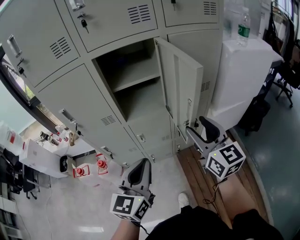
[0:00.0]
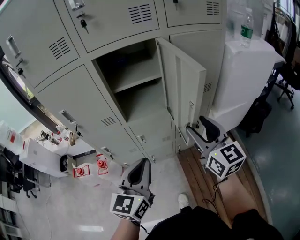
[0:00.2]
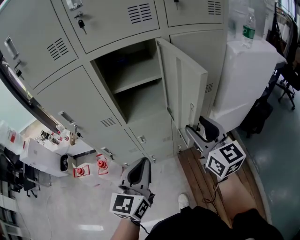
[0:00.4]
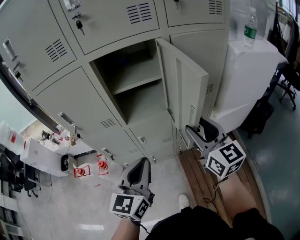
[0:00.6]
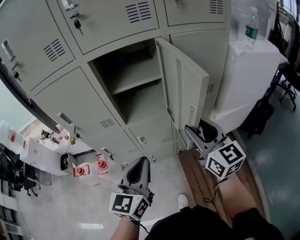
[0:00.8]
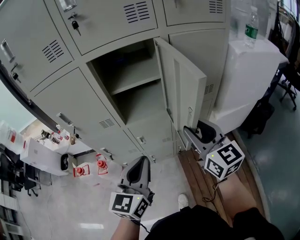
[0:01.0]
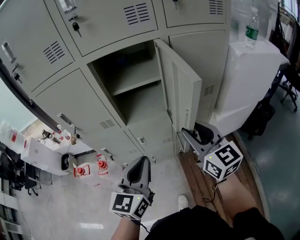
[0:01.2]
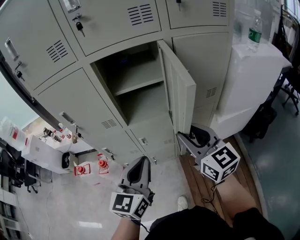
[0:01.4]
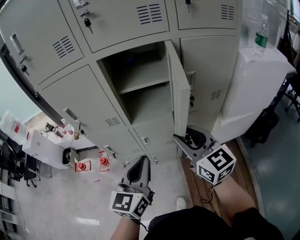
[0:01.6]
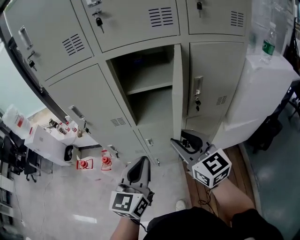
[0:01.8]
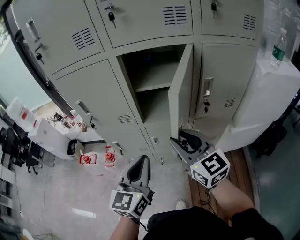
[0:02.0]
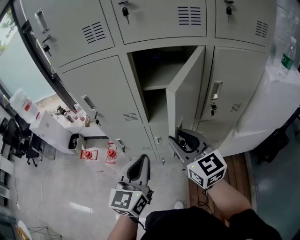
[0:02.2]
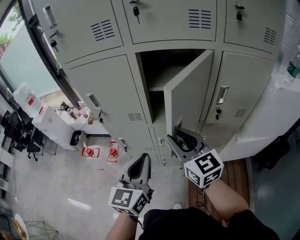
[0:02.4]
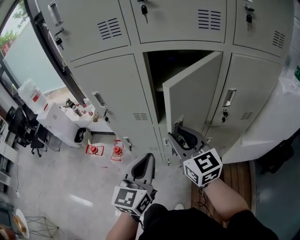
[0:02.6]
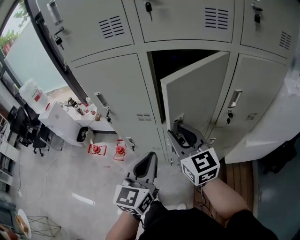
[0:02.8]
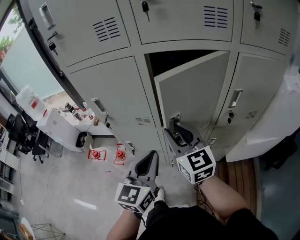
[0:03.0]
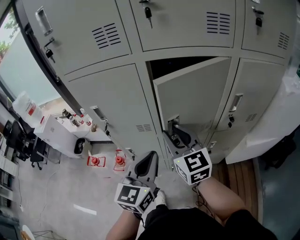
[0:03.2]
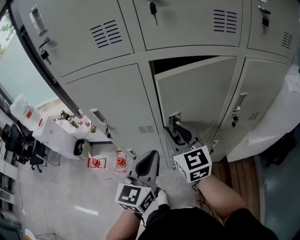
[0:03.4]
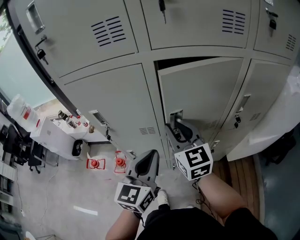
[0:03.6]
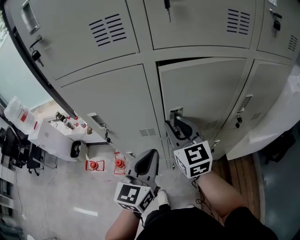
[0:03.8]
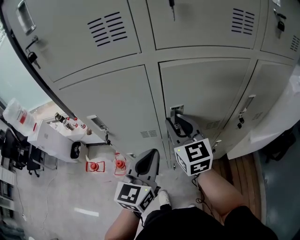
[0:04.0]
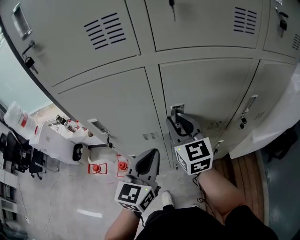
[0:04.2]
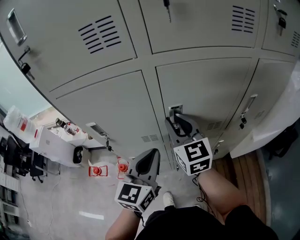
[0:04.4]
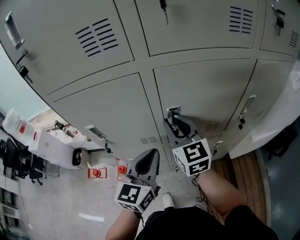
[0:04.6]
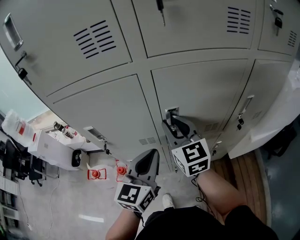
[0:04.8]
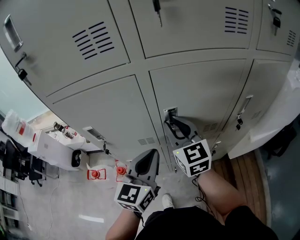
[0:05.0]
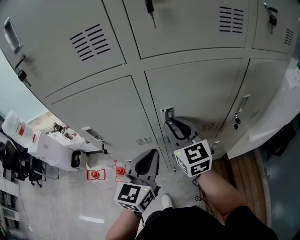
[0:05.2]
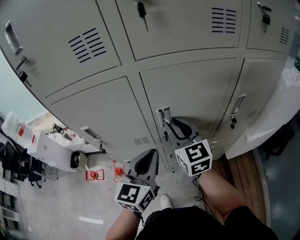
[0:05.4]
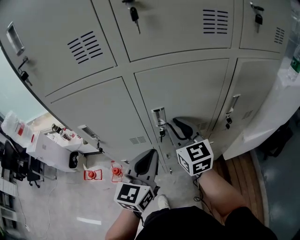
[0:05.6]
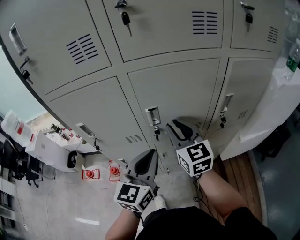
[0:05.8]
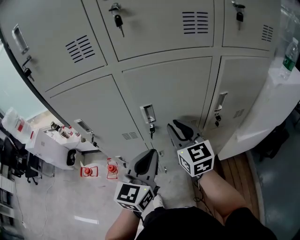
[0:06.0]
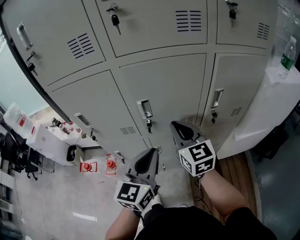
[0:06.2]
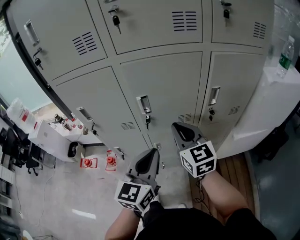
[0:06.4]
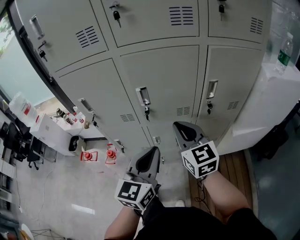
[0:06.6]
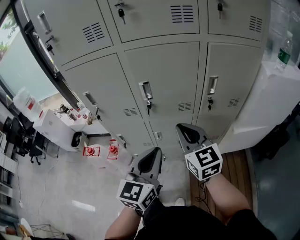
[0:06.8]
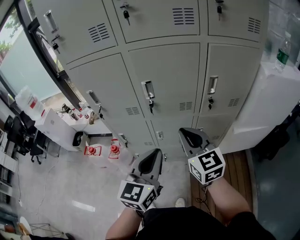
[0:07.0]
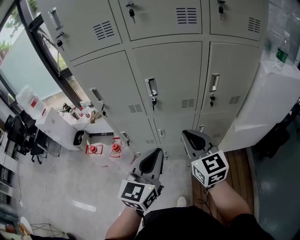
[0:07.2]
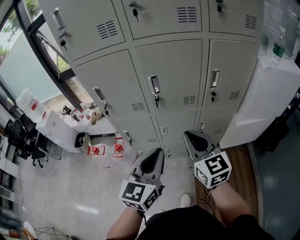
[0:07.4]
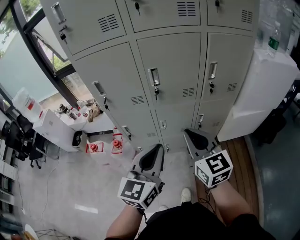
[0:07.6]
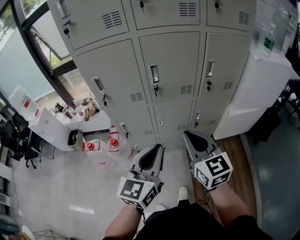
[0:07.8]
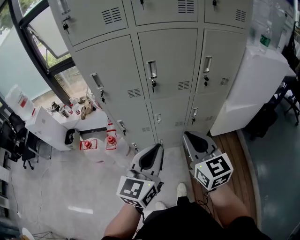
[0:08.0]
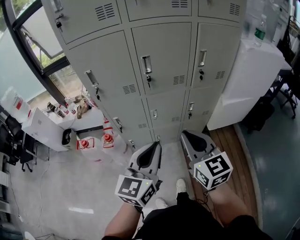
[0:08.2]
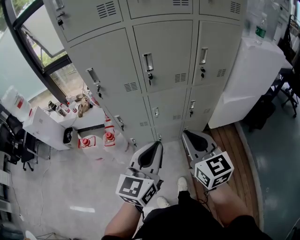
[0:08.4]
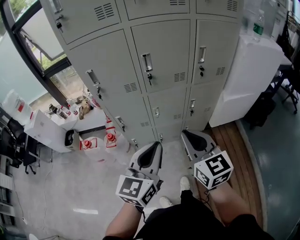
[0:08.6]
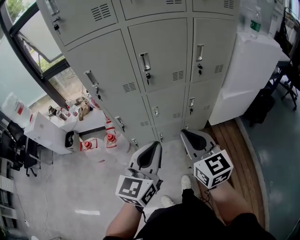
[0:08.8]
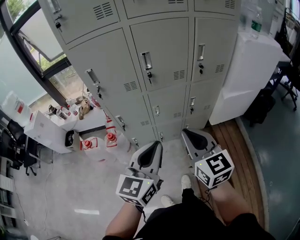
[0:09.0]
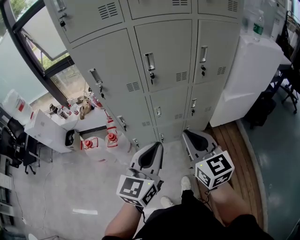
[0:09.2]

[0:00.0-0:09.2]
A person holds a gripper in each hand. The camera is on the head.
0:00.0 to 0:01.6: The right gripper is displaced to the left by about 5 cm.
0:01.6 to 0:03.0: The left gripper moves forward and to the left, roughly 10 cm. The right gripper travels to the left and forward by approximately 20 cm.
0:03.0 to 0:04.6: Both grippers move forward, approximately 10 cm.
0:04.6 to 0:06.2: Both grippers move to the right and backward, about 15 cm.
0:06.2 to 0:07.6: Both grippers move backward, roughly 20 cm.
0:07.6 to 0:09.2: The two grippers go approximately 10 cm backward.

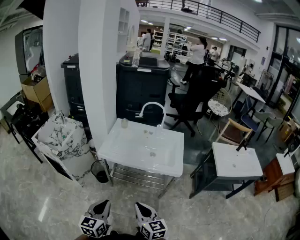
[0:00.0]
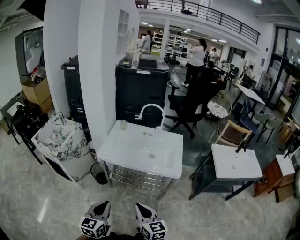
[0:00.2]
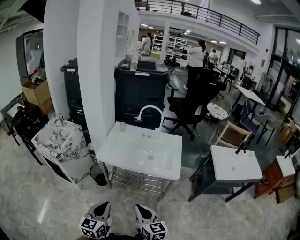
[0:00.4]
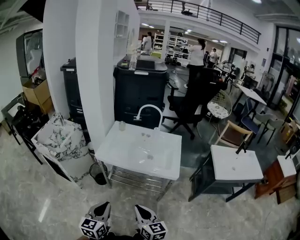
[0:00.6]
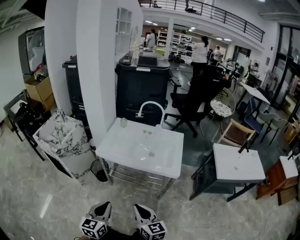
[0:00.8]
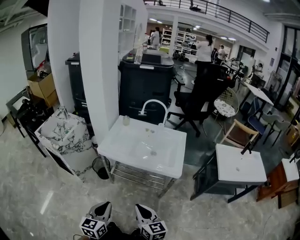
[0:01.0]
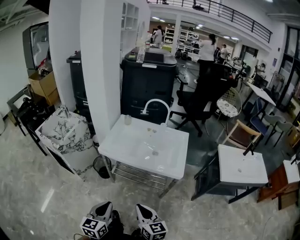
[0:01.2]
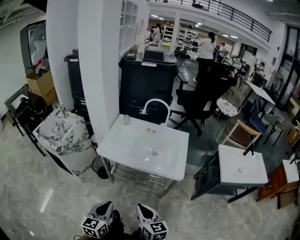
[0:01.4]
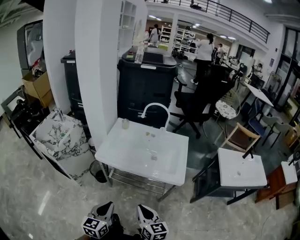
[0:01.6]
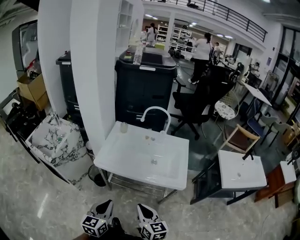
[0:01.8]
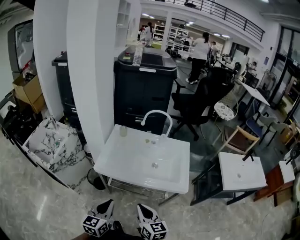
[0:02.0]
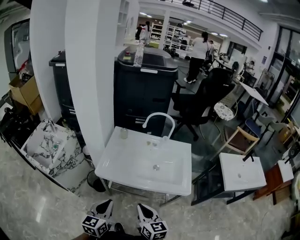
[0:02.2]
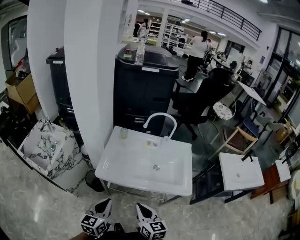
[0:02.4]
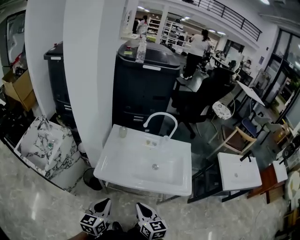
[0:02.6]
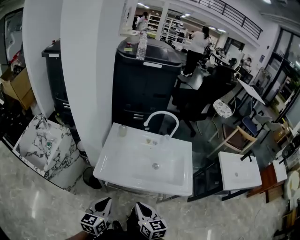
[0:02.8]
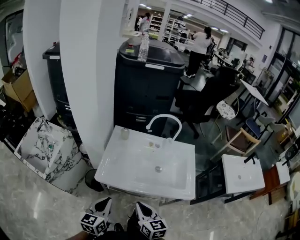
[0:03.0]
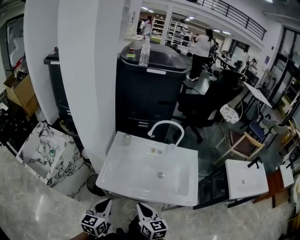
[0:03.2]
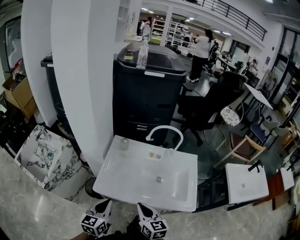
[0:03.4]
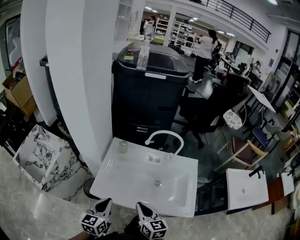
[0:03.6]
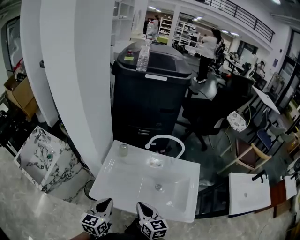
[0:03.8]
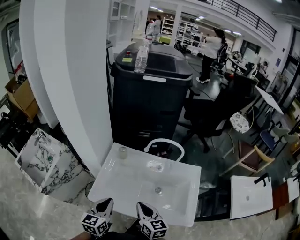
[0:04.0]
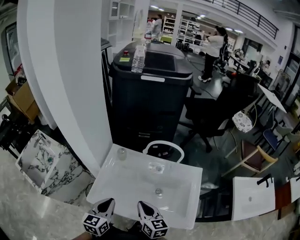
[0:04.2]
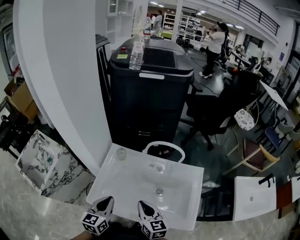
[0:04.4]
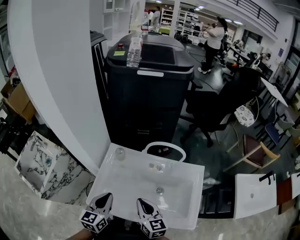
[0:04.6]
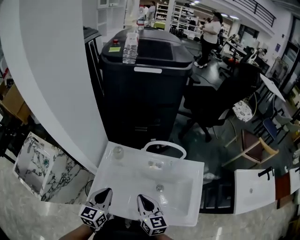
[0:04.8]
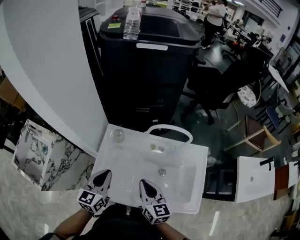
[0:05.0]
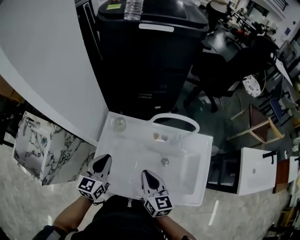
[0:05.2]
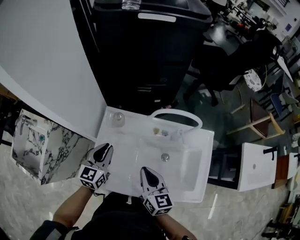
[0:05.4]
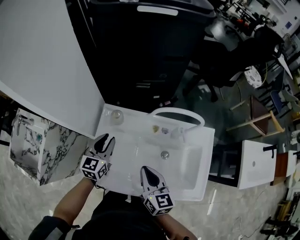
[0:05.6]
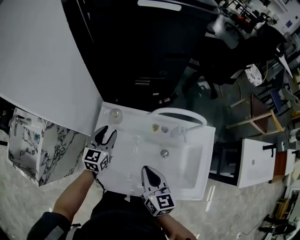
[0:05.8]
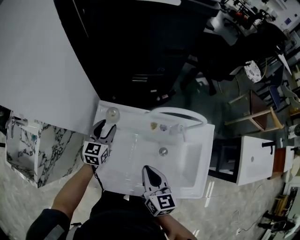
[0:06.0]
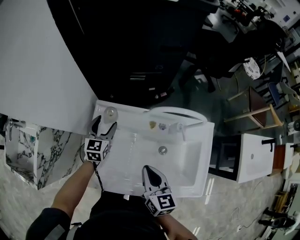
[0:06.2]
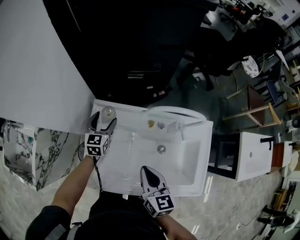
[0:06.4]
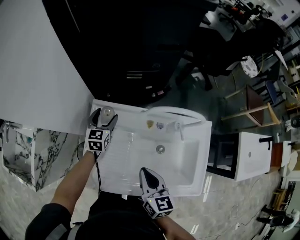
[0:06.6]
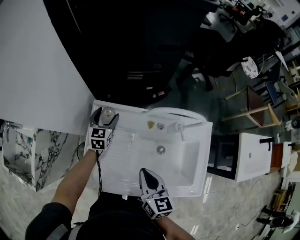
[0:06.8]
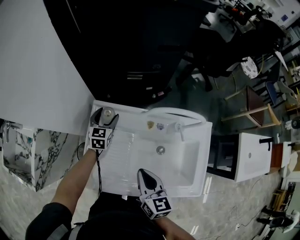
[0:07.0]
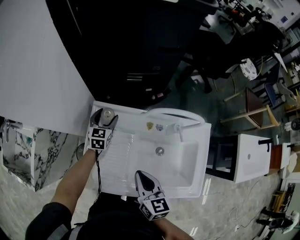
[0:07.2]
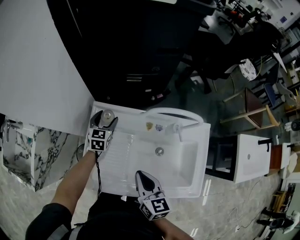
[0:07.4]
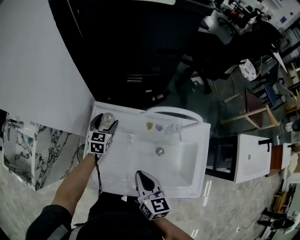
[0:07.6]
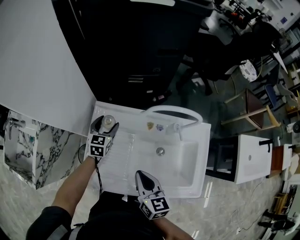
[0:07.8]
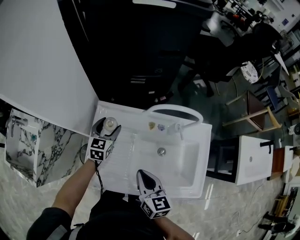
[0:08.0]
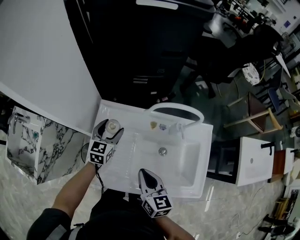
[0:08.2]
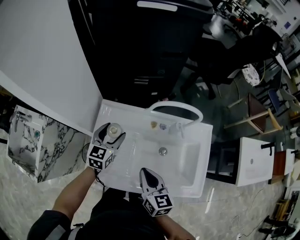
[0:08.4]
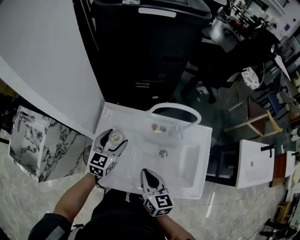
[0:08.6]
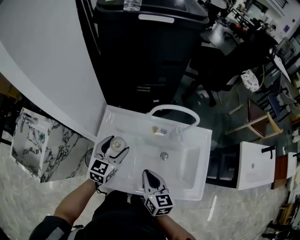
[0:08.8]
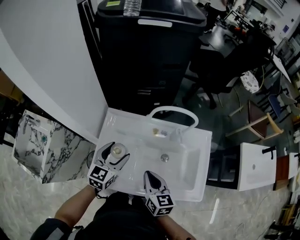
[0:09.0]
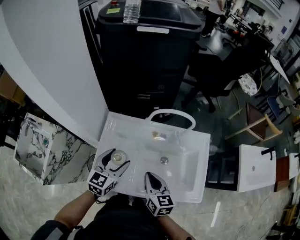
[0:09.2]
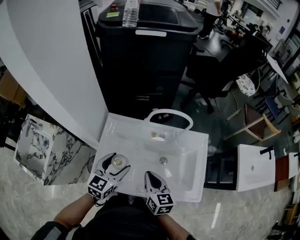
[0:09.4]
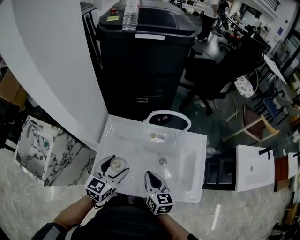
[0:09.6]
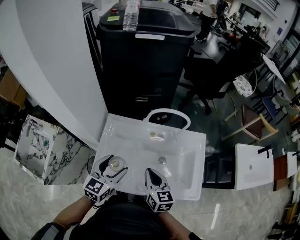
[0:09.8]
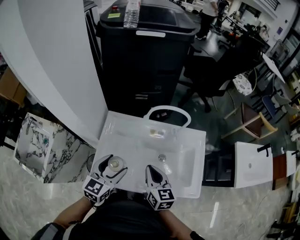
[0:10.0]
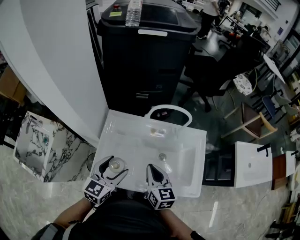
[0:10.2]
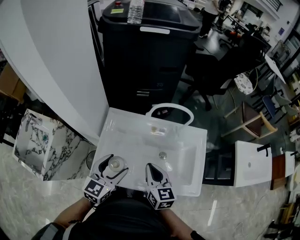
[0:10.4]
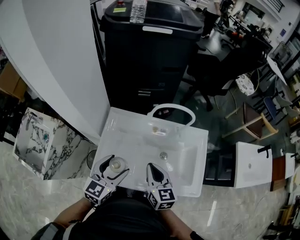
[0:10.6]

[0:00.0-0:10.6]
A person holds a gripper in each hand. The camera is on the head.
0:00.0 to 0:01.6: Both grippers move forward, roughly 5 cm.
0:01.6 to 0:03.0: Both grippers travel together forward and to the left, some 25 cm.
0:03.0 to 0:04.6: Both grippers travel together forward, roughly 20 cm.
0:04.6 to 0:06.0: The right gripper moves forward, approximately 5 cm. The left gripper moves forward and downward, roughly 25 cm, and opens.
0:06.0 to 0:07.6: The left gripper travels downward by about 5 cm, and opens.
0:07.6 to 0:09.0: The left gripper is displaced backward and upward by about 20 cm.
0:09.0 to 0:10.6: The left gripper travels backward and upward by roughly 10 cm. Meanwhile the right gripper goes roughly 5 cm upward.

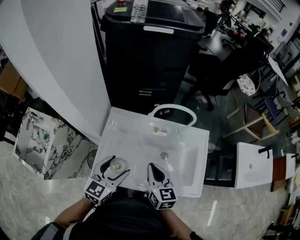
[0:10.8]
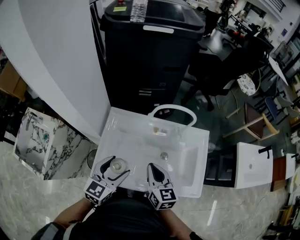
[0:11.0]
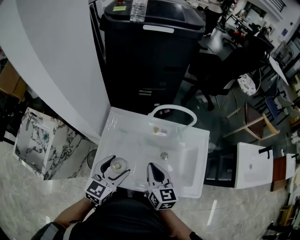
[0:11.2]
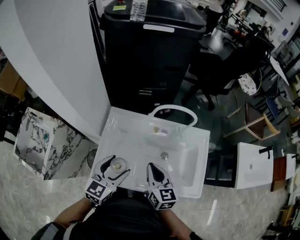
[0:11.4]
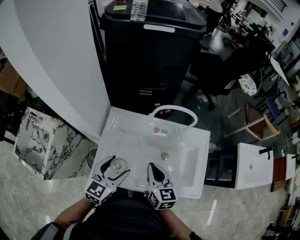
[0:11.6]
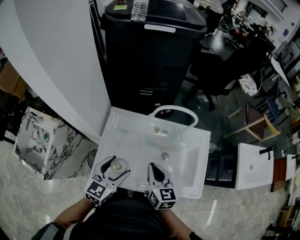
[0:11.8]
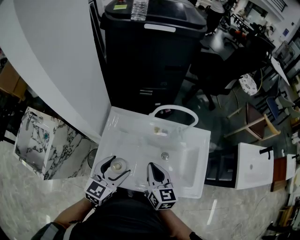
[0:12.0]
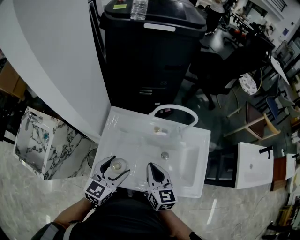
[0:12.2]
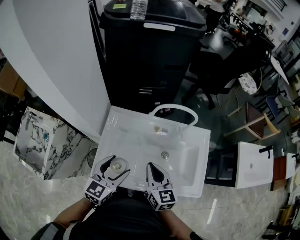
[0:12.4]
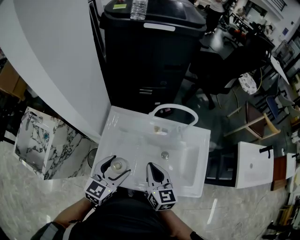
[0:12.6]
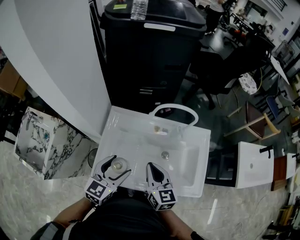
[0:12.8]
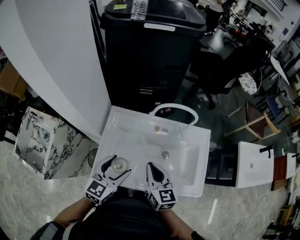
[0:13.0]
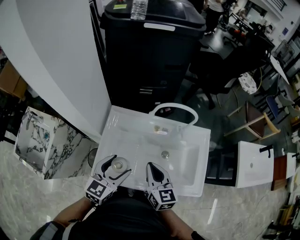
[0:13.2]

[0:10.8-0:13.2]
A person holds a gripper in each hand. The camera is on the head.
0:10.8 to 0:12.0: Neither gripper changes place.
0:12.0 to 0:13.2: The grippers move only a little.

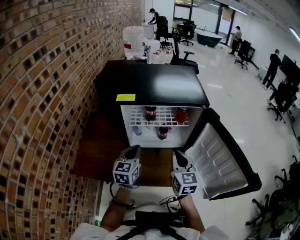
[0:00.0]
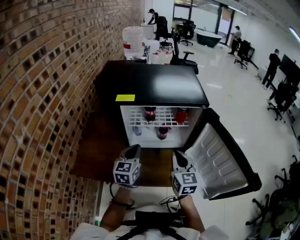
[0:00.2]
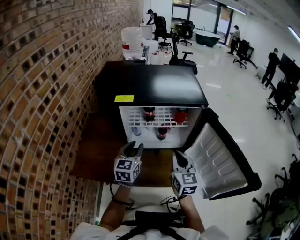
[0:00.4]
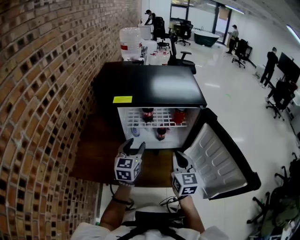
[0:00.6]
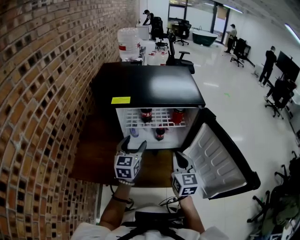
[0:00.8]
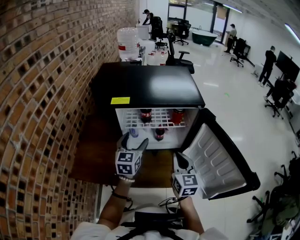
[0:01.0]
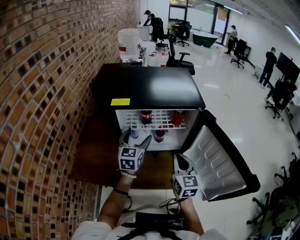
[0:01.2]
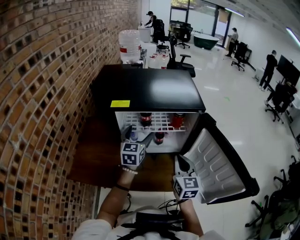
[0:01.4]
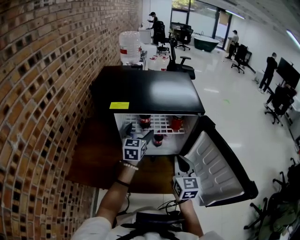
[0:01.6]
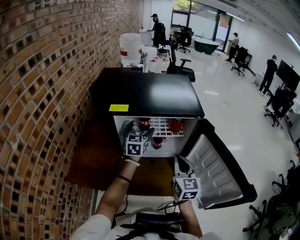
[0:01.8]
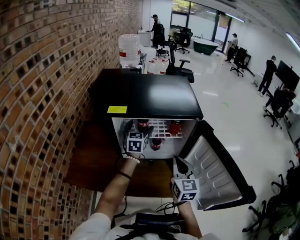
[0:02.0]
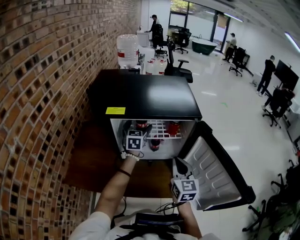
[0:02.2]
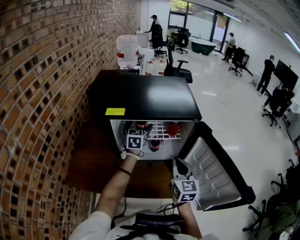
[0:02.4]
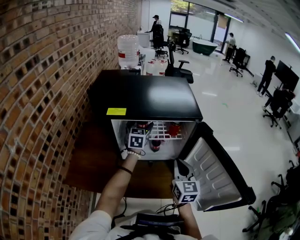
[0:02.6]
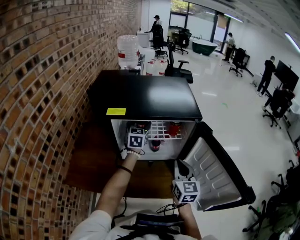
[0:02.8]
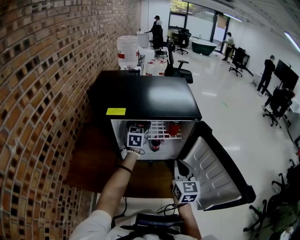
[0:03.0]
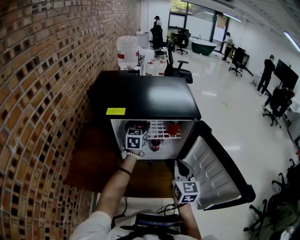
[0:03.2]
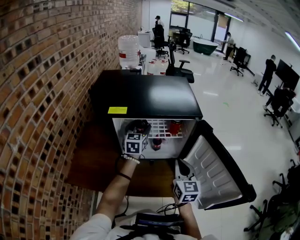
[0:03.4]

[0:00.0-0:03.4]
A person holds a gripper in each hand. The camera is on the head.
0:00.0 to 0:01.6: The left gripper goes approximately 15 cm forward, and opens up.
